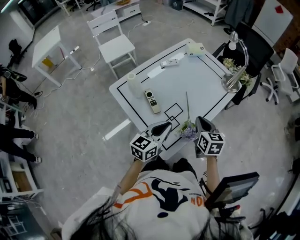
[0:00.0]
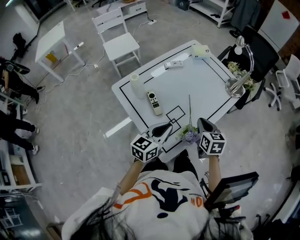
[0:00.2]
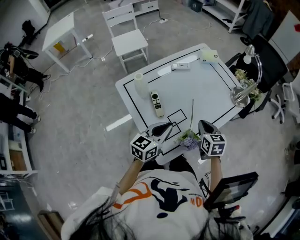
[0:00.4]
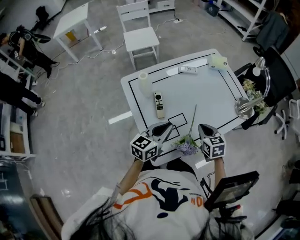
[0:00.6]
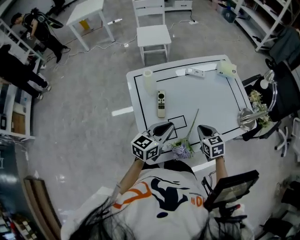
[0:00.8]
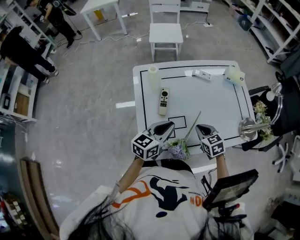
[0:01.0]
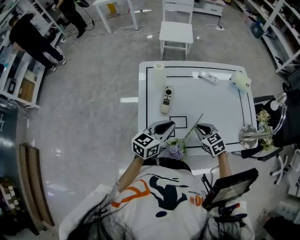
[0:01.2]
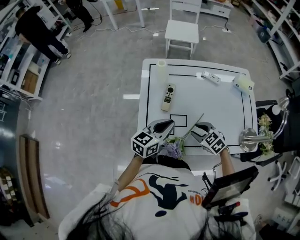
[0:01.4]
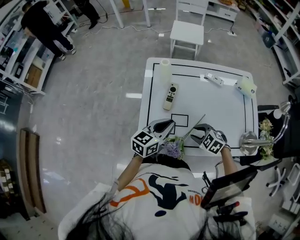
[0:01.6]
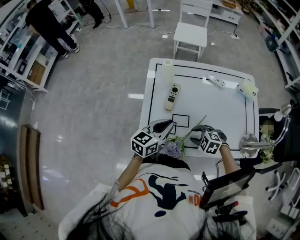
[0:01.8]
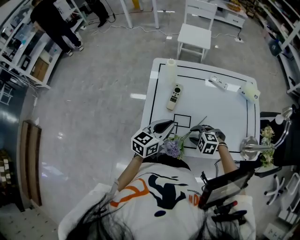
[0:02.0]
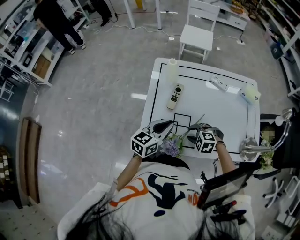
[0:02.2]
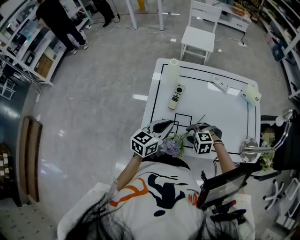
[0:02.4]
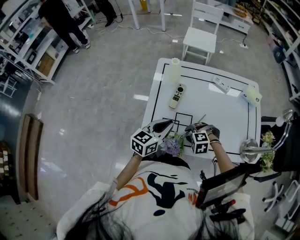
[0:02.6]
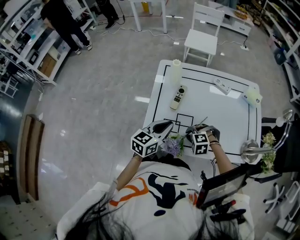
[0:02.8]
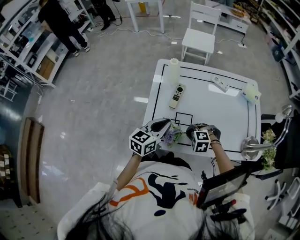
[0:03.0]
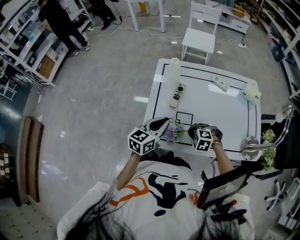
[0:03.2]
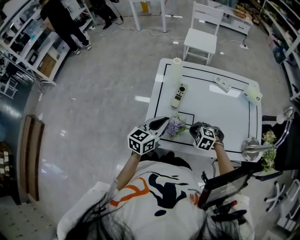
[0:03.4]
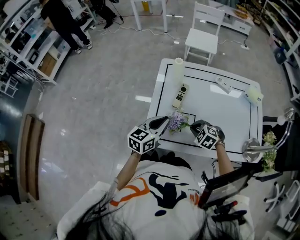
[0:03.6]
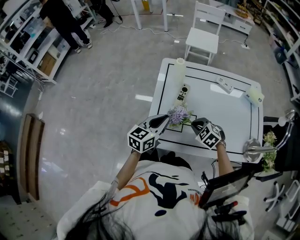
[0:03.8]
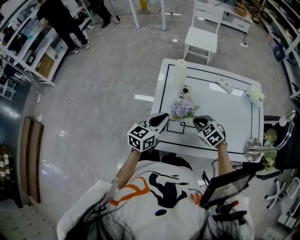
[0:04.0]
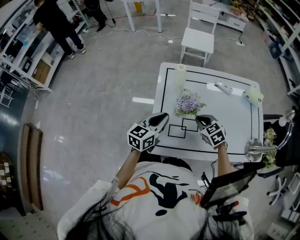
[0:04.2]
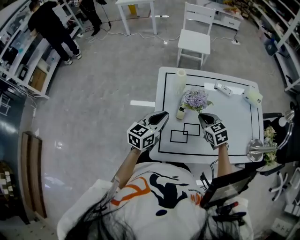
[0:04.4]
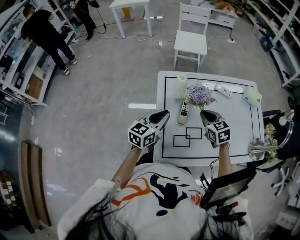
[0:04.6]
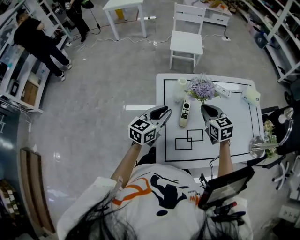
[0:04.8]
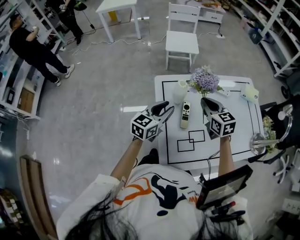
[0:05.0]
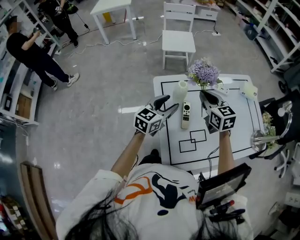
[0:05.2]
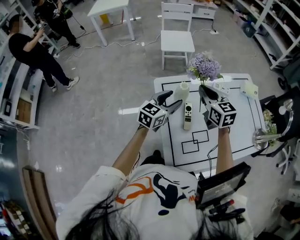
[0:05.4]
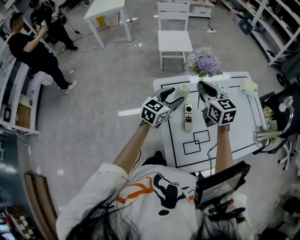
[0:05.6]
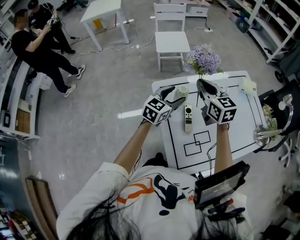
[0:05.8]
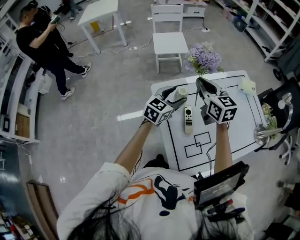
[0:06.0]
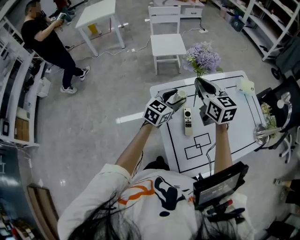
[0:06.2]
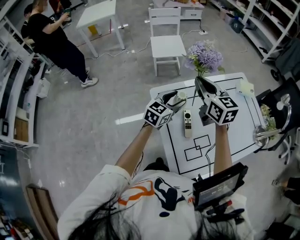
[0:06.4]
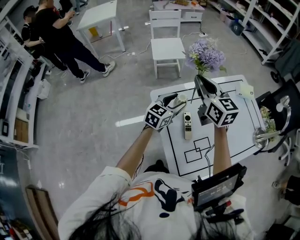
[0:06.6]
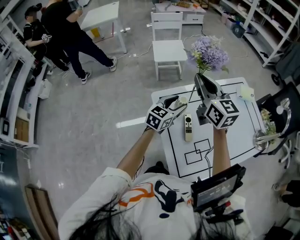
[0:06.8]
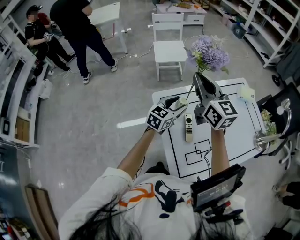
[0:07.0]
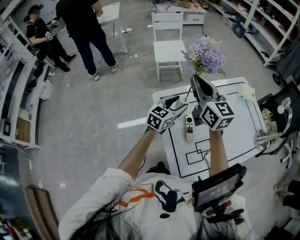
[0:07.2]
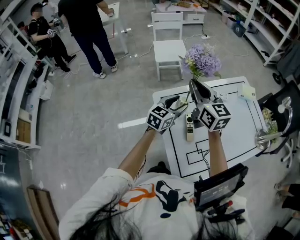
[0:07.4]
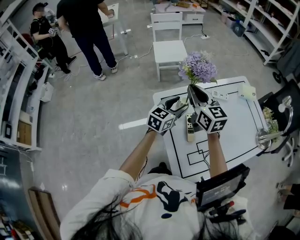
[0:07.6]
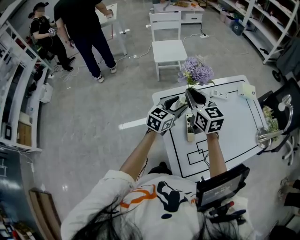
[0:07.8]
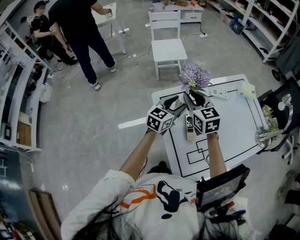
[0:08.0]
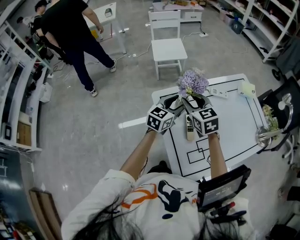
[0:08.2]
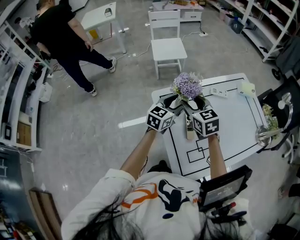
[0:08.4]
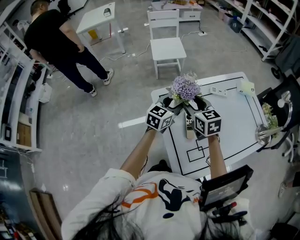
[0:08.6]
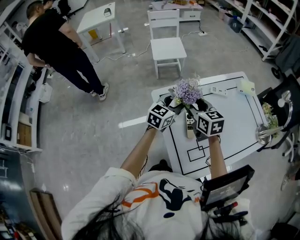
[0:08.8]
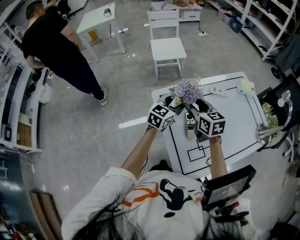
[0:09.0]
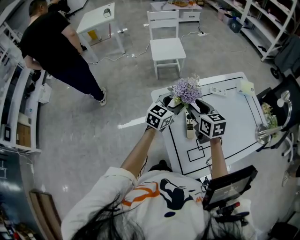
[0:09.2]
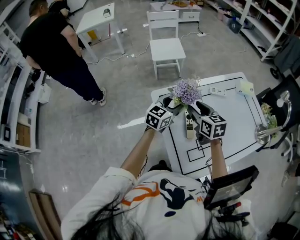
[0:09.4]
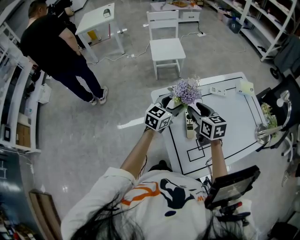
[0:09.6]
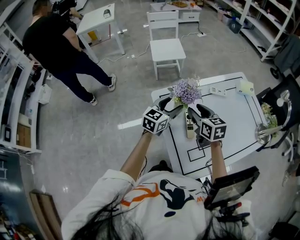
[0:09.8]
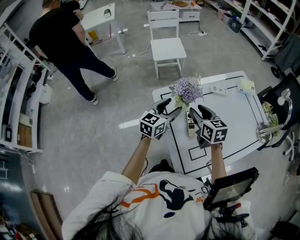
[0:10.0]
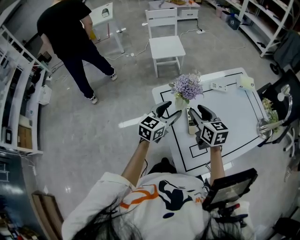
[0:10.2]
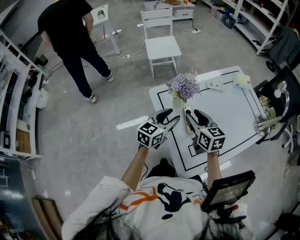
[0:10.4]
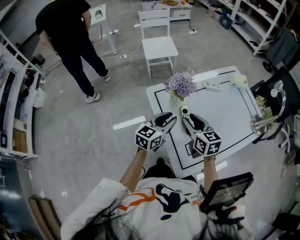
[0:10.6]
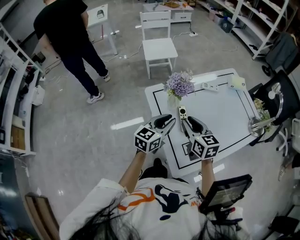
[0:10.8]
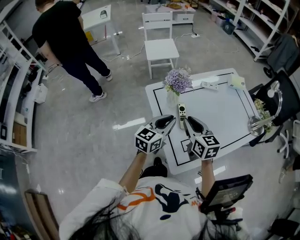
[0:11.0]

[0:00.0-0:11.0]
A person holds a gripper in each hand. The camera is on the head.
0:00.0 to 0:01.6: The left gripper ends up roughly 5 cm from where it was, and changes its angle by approximately 40 degrees, while the right gripper moves downward, some 10 cm, swivels roughly 110 degrees, and opens its fingers.
0:01.6 to 0:03.2: The right gripper changes its angle by approximately 20 degrees, and closes.
0:03.2 to 0:04.8: The left gripper travels forward and to the left by some 15 cm. The right gripper goes about 25 cm forward and upward, and twists approximately 60 degrees clockwise, seen from behind.
0:04.8 to 0:06.2: The right gripper moves upward, forward and to the left, some 15 cm, and swivels some 20 degrees. Meanwhile the left gripper shifts some 15 cm forward, rotates about 20 degrees, and opens its fingers.
0:06.2 to 0:07.8: The right gripper reaches roughly 10 cm upward, then returns.
0:07.8 to 0:09.4: The right gripper is displaced downward by about 10 cm, and opens up.
0:09.4 to 0:11.0: The two grippers go some 15 cm backward. The left gripper closes its fingers. The right gripper closes up.

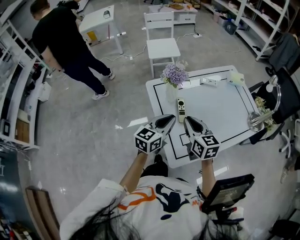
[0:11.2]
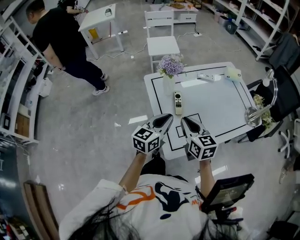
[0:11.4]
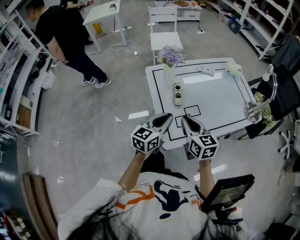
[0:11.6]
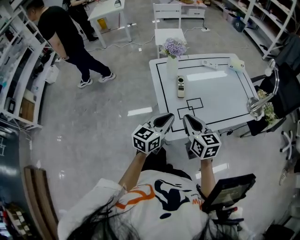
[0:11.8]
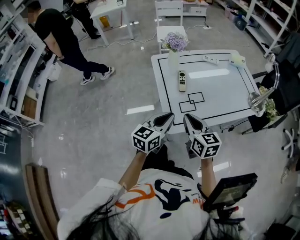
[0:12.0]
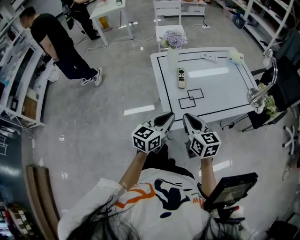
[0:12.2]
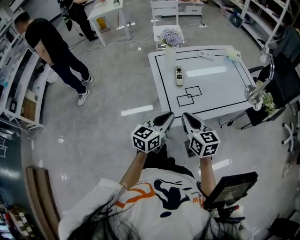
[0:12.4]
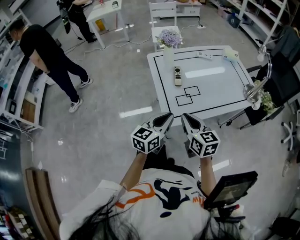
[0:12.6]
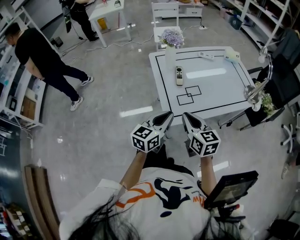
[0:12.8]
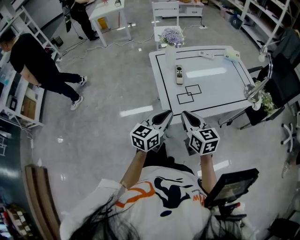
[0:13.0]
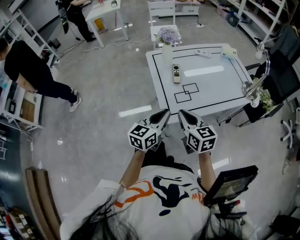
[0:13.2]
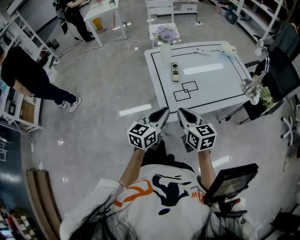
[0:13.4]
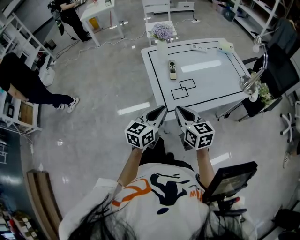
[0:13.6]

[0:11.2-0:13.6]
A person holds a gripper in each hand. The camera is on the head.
0:11.2 to 0:12.4: The grippers both shift backward by approximately 20 cm.
0:12.4 to 0:13.6: The grippers stay close to where they were, moving slightly.

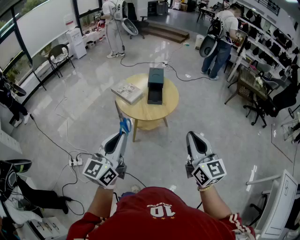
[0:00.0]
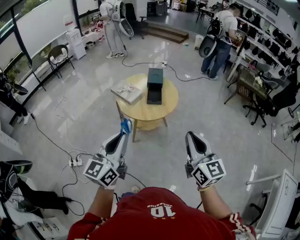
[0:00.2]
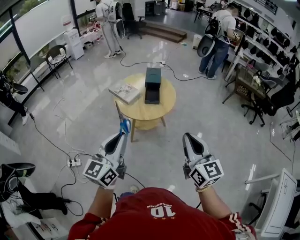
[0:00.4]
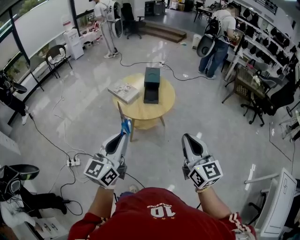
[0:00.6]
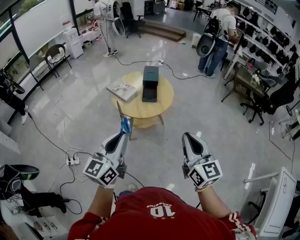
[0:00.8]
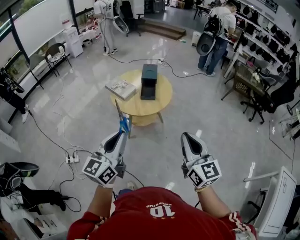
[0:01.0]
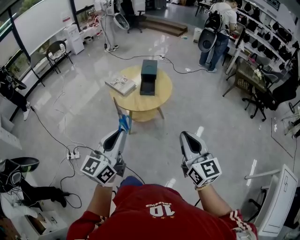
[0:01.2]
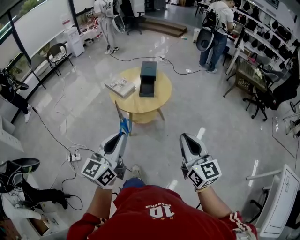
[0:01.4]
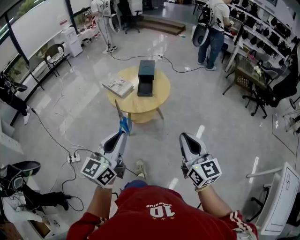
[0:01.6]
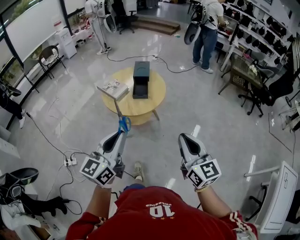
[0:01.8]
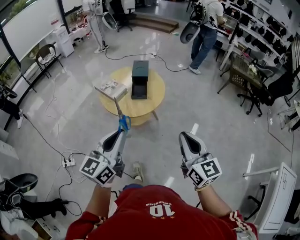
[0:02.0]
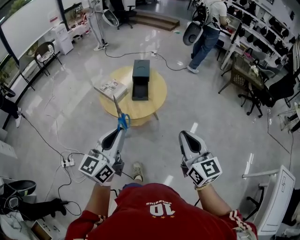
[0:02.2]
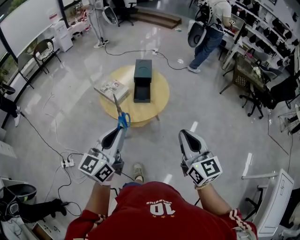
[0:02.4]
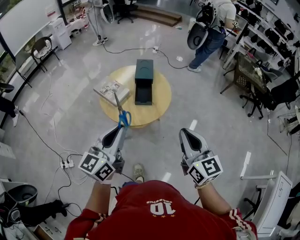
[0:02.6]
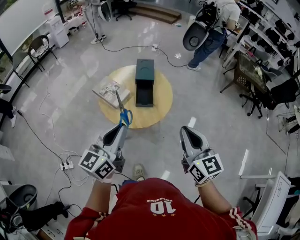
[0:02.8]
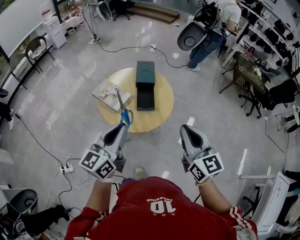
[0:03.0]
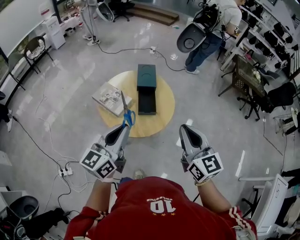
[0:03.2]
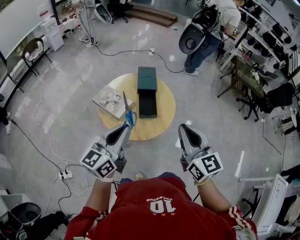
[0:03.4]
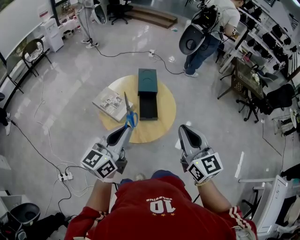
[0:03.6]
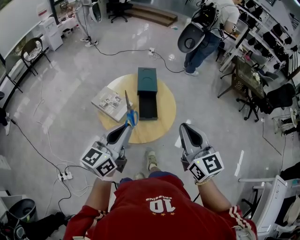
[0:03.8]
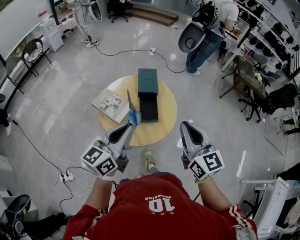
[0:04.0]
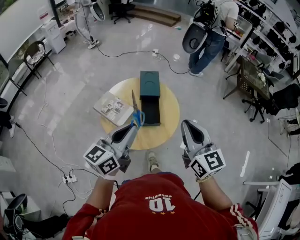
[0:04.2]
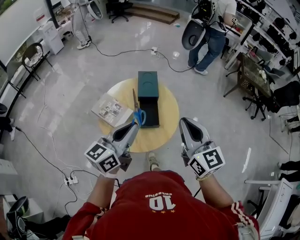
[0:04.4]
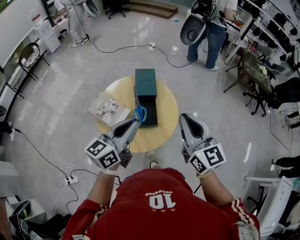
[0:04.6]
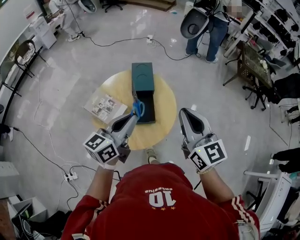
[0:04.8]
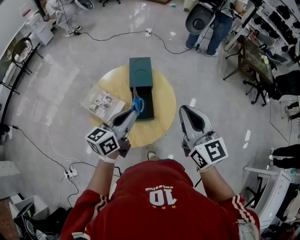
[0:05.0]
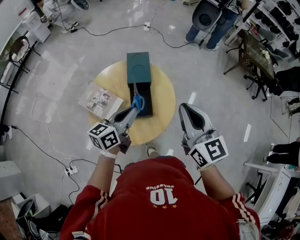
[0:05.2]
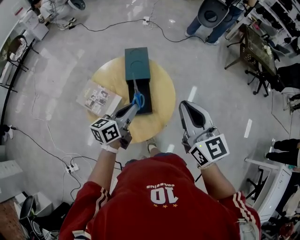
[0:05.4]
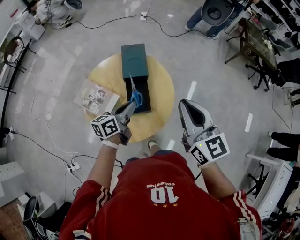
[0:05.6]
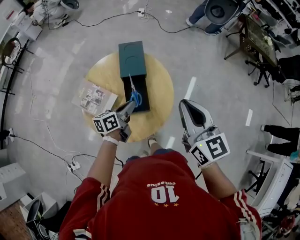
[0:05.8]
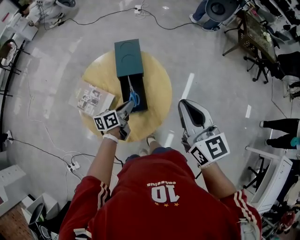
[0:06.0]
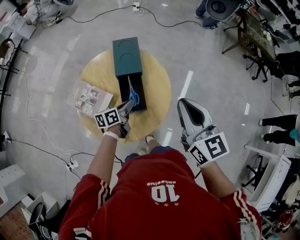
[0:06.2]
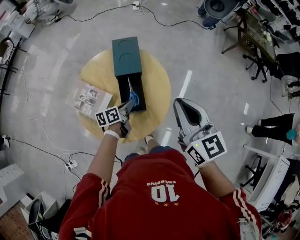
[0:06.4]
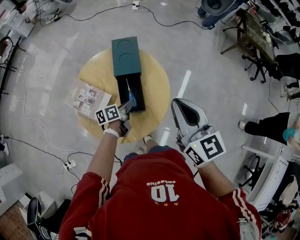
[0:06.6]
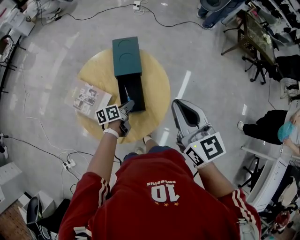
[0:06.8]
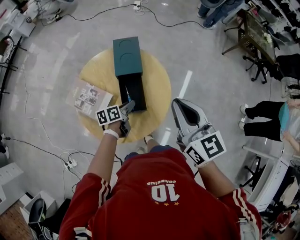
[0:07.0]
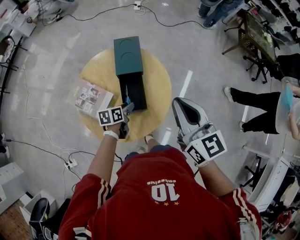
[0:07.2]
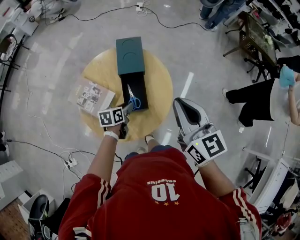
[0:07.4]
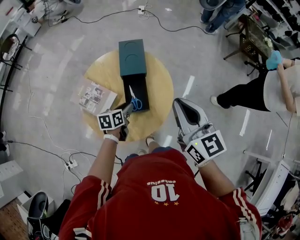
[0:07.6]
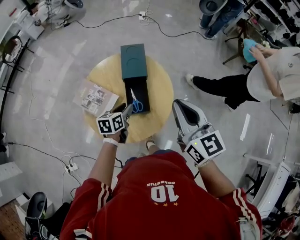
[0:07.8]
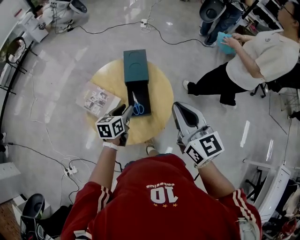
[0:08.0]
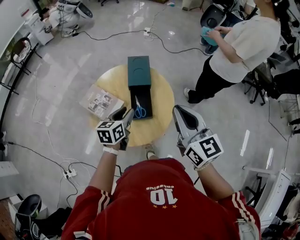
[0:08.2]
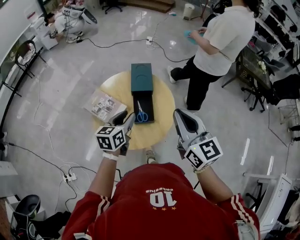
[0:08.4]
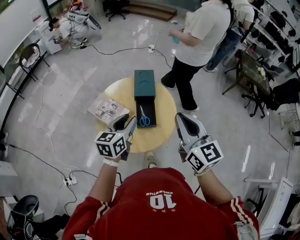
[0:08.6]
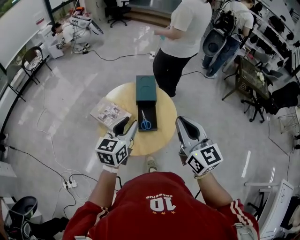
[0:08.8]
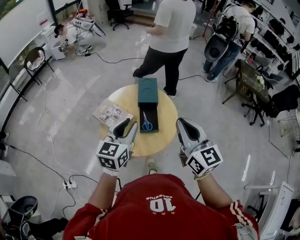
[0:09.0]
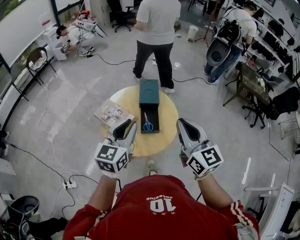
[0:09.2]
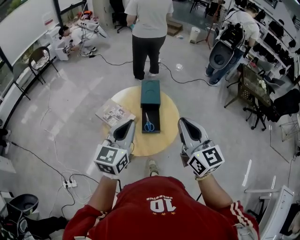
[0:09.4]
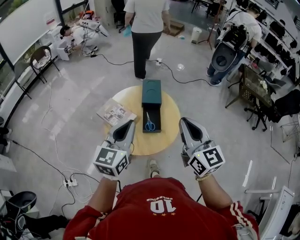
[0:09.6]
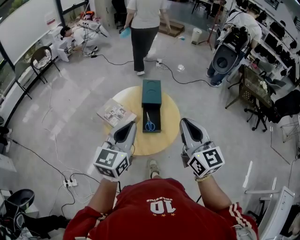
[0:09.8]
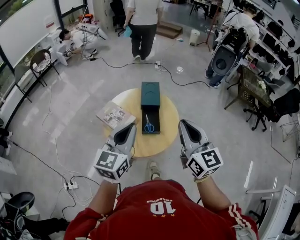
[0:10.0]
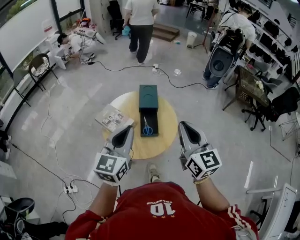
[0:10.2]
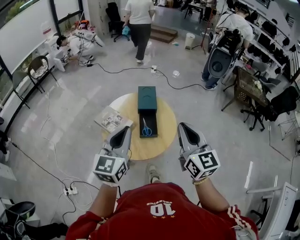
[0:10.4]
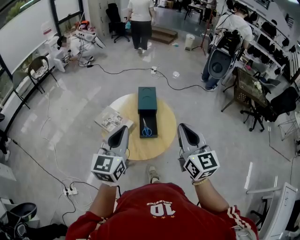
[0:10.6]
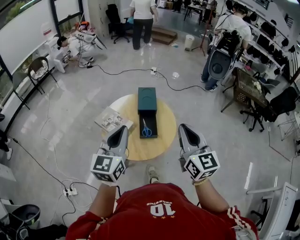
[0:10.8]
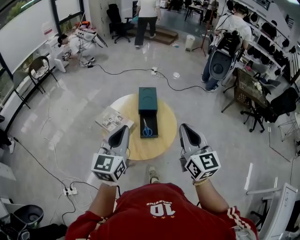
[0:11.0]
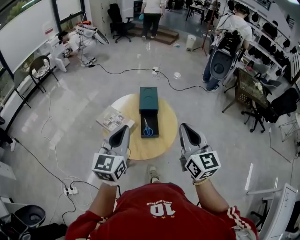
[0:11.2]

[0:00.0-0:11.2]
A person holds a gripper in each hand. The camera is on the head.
0:00.0 to 0:01.6: The grippers both shift to the right by approximately 10 cm.
0:01.6 to 0:03.2: The left gripper heads forward, covering approximately 30 cm. The right gripper heads forward and to the left, covering about 30 cm.
0:03.2 to 0:04.8: The grippers both shift forward by some 15 cm.
0:04.8 to 0:06.4: The right gripper shifts about 10 cm downward and forward. The left gripper travels downward by roughly 30 cm, and swivels about 40 degrees.
0:06.4 to 0:08.0: The right gripper changes place by approximately 5 cm; the left gripper moves upward, about 10 cm, turns by roughly 30 degrees, and opens its fingers.
0:08.0 to 0:09.6: The right gripper goes some 15 cm backward and upward. Meanwhile the left gripper moves upward and backward, some 30 cm, changes its angle by some 40 degrees, and closes.
0:09.6 to 0:11.2: The grippers stay close to where they were, moving slightly.
